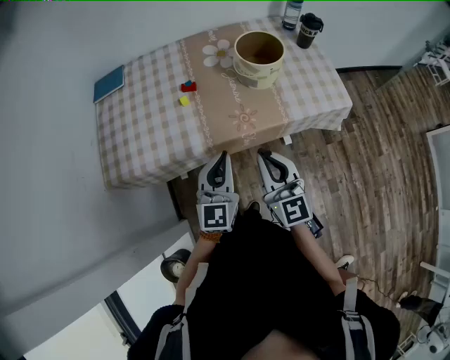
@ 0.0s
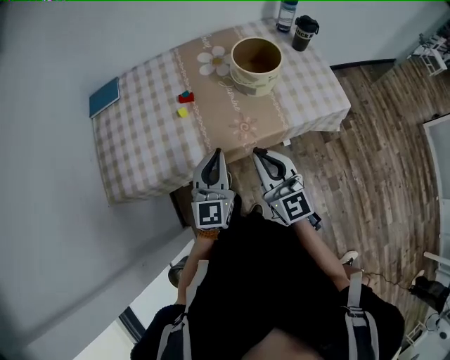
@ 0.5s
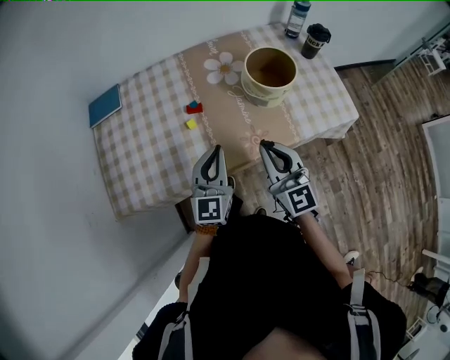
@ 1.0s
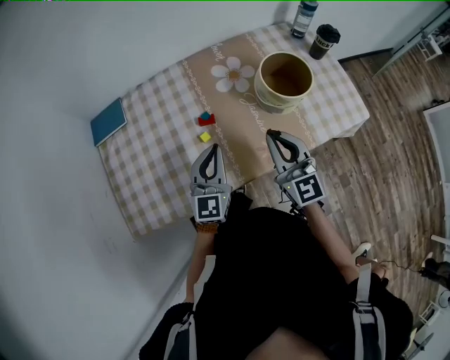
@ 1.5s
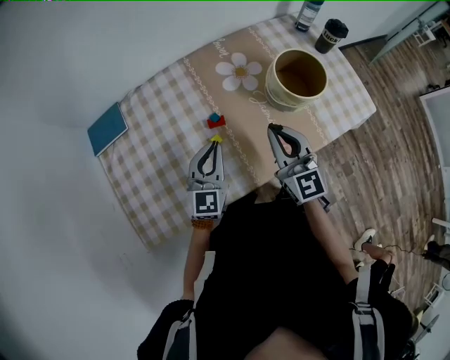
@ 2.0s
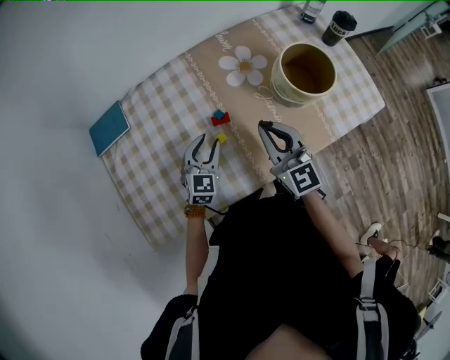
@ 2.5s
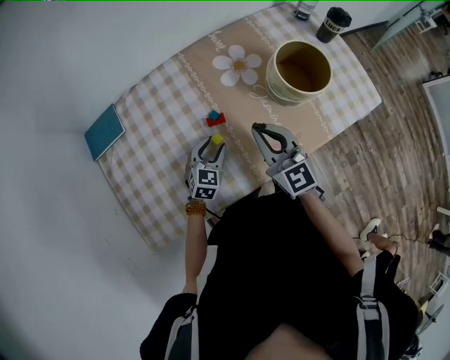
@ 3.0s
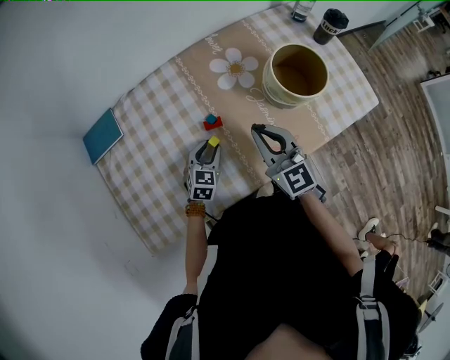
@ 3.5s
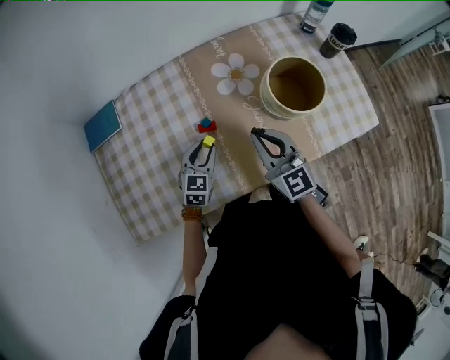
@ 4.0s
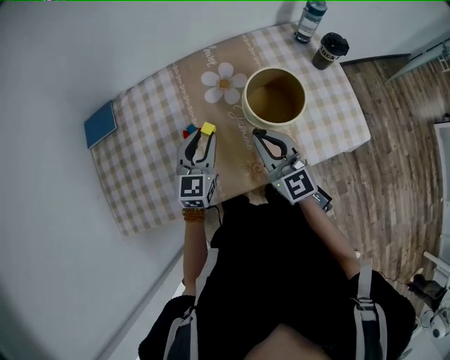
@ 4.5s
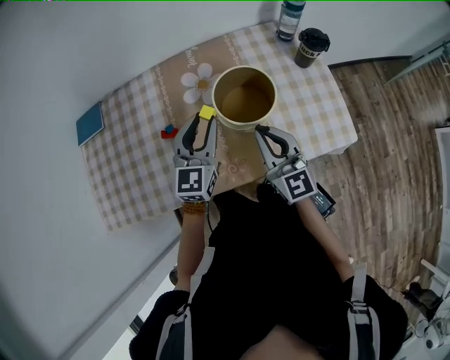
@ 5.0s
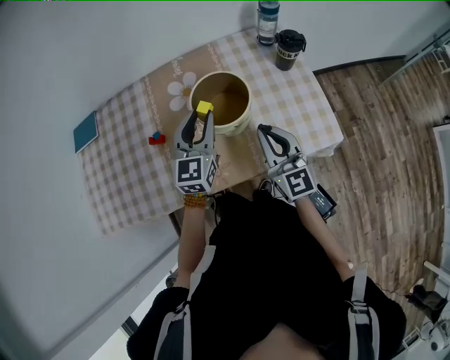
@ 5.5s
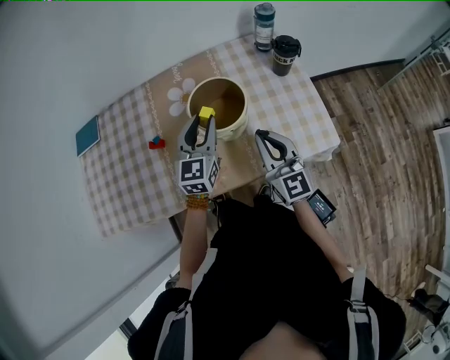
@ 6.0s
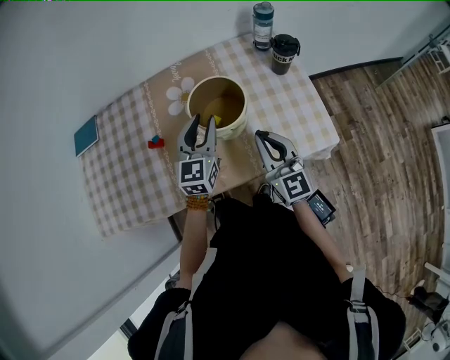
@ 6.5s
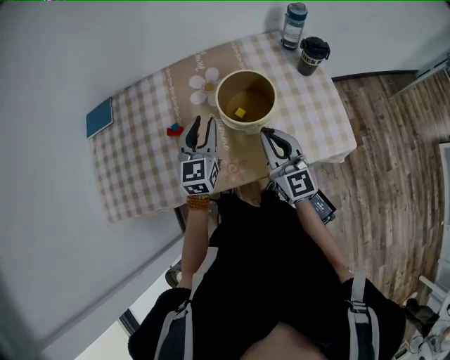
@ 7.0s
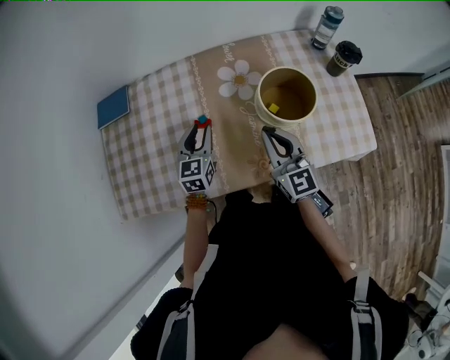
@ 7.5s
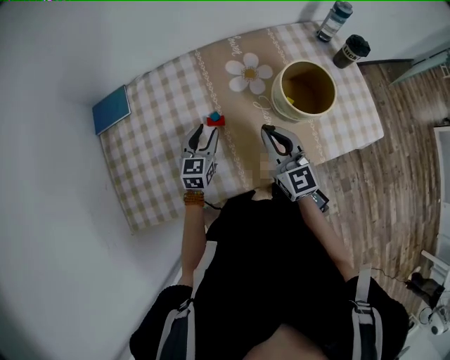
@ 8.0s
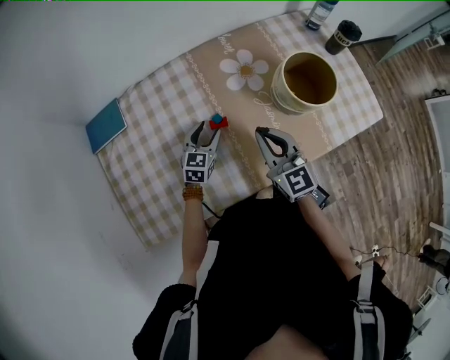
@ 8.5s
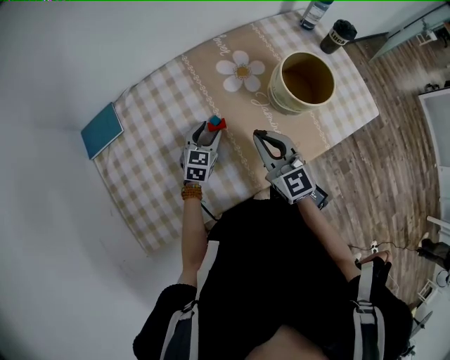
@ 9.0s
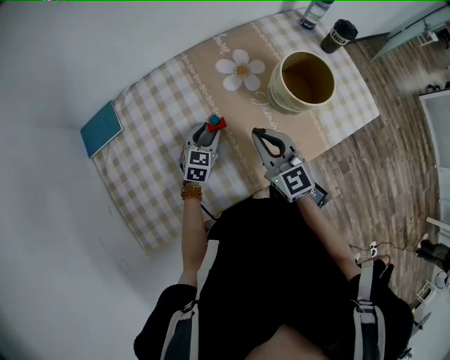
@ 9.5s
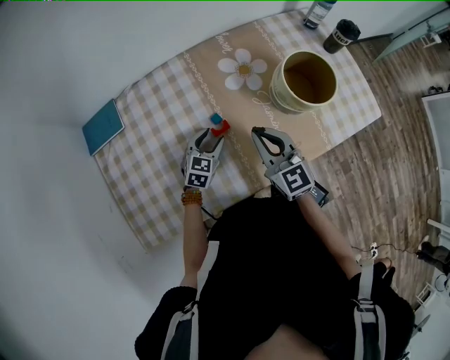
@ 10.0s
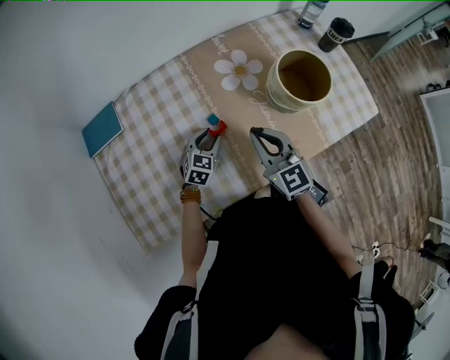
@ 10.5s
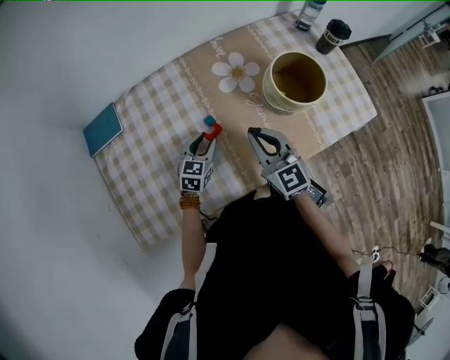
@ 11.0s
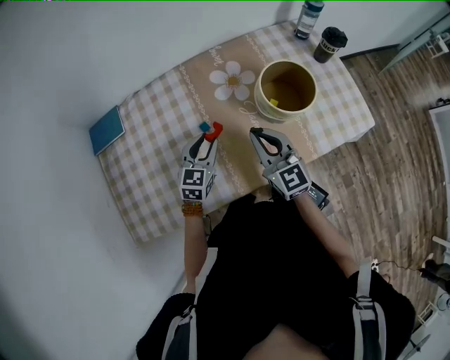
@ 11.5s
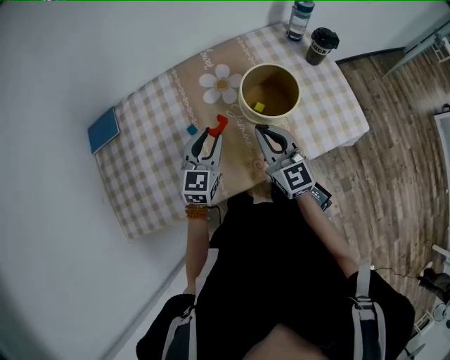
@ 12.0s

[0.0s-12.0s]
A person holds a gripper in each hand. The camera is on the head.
0.0s to 2.0s: Both grippers move forward and to the left, approximately 30 cm.
2.0s to 4.0s: The left gripper shifts about 10 cm downward, changes its angle by roughly 20 degrees, and opens up.
4.0s to 6.0s: The right gripper heads to the right, covering some 25 cm, while the left gripper heads to the right and upward, covering approximately 30 cm, and turns by about 20 degrees.
6.0s to 8.0s: The left gripper is displaced to the left and downward by about 35 cm, while the right gripper is displaced to the left by roughly 25 cm.
8.0s to 10.0s: The left gripper moves downward, about 5 cm, and changes its angle by roughly 20 degrees. Meanwhile the right gripper heads to the left, covering approximately 5 cm.
10.0s to 12.0s: The right gripper goes roughly 15 cm to the right. Meanwhile the left gripper shifts some 20 cm upward and to the right, and closes up.

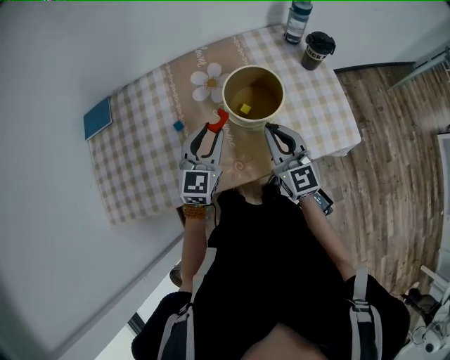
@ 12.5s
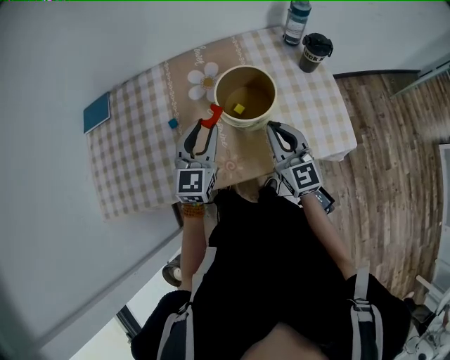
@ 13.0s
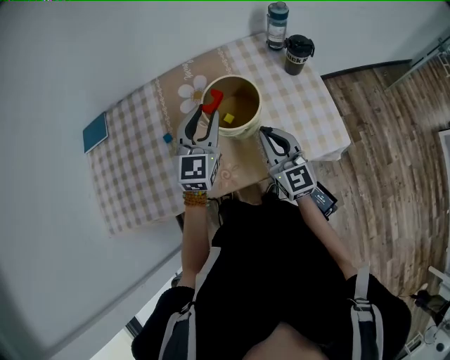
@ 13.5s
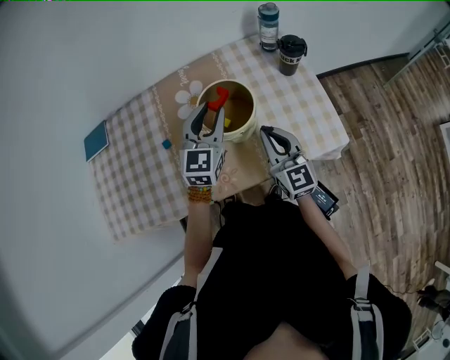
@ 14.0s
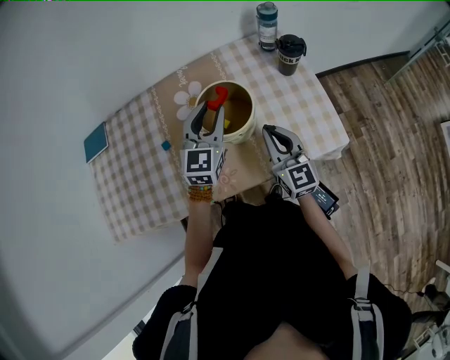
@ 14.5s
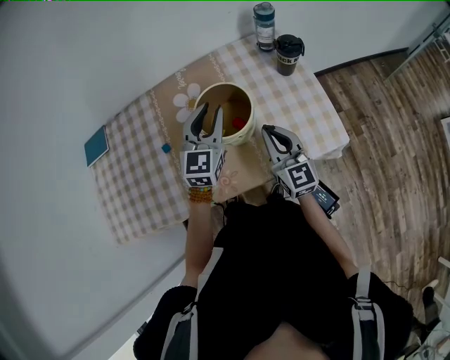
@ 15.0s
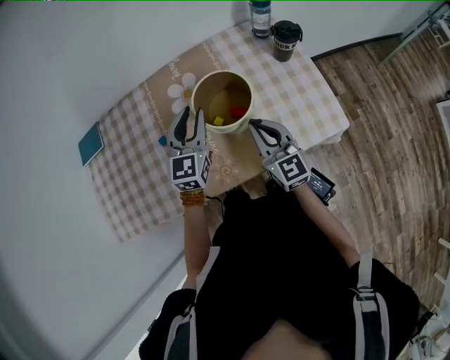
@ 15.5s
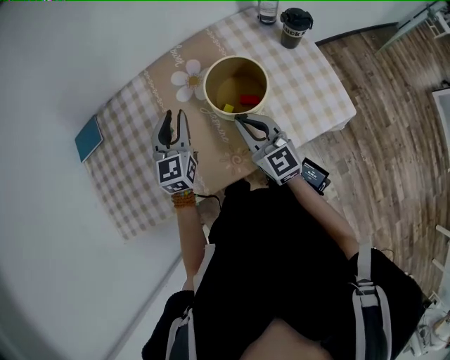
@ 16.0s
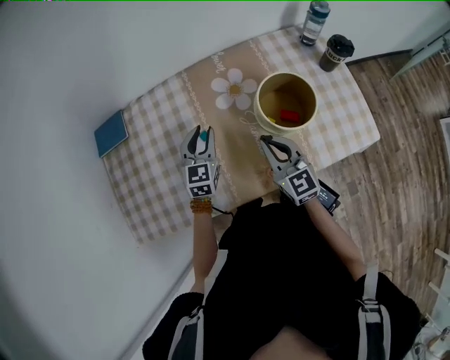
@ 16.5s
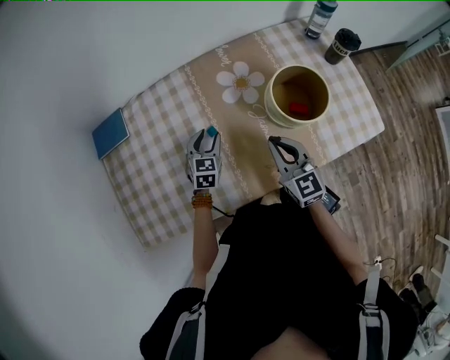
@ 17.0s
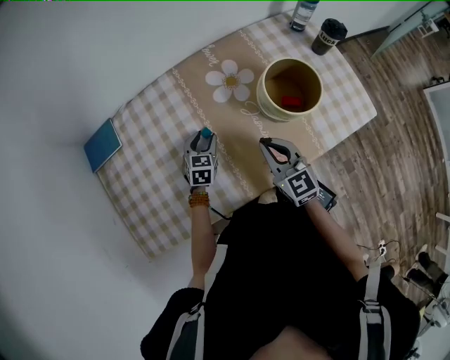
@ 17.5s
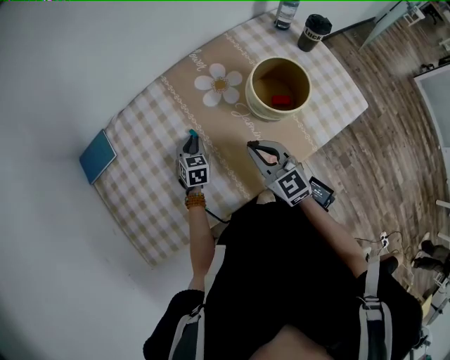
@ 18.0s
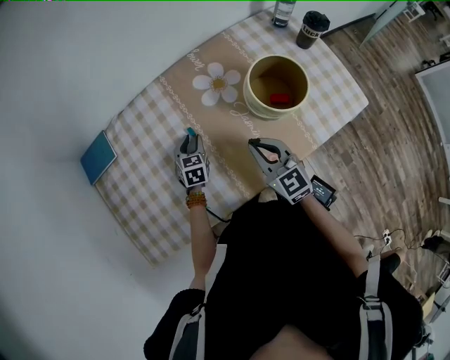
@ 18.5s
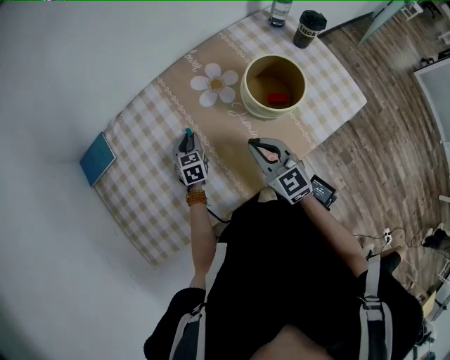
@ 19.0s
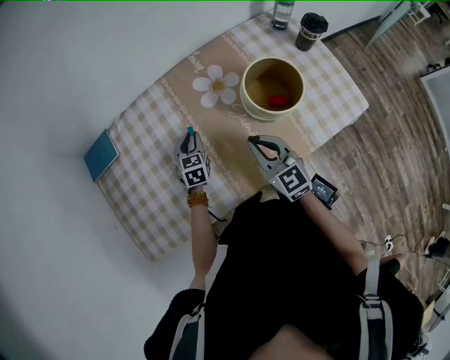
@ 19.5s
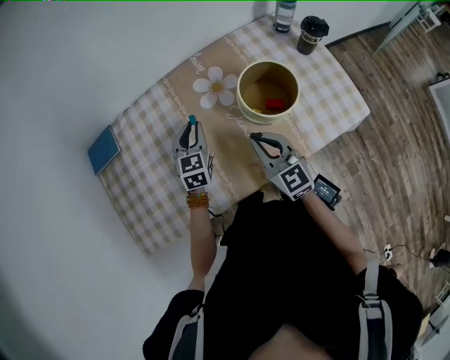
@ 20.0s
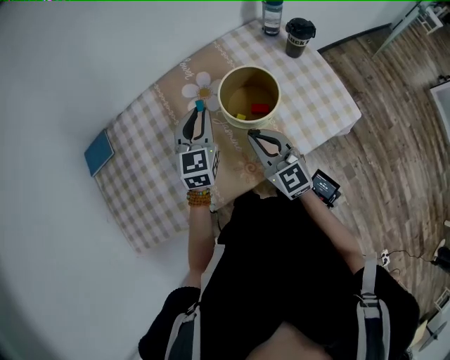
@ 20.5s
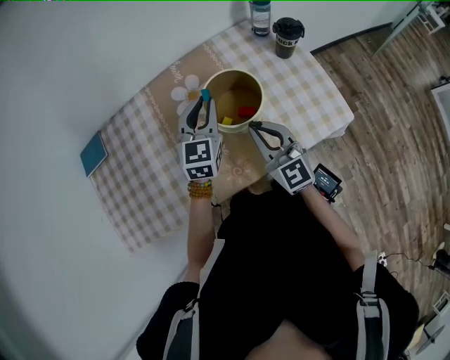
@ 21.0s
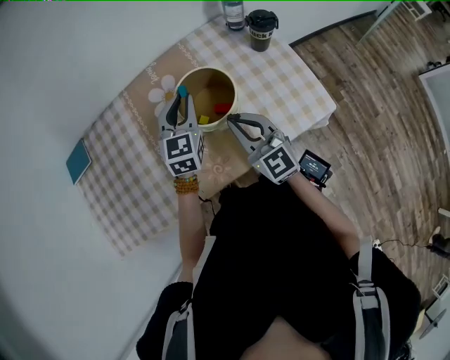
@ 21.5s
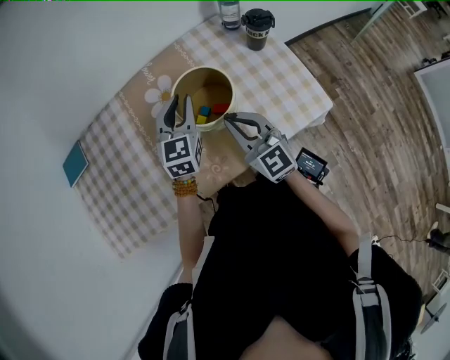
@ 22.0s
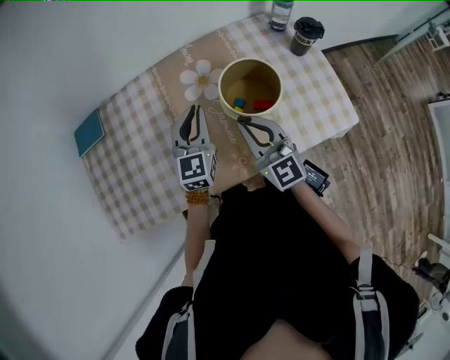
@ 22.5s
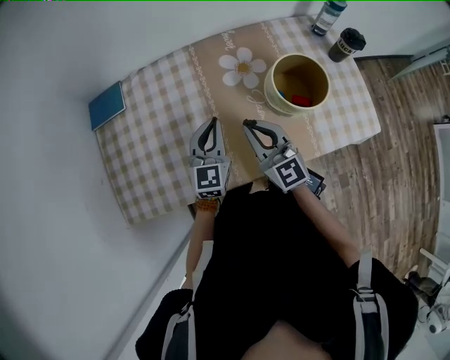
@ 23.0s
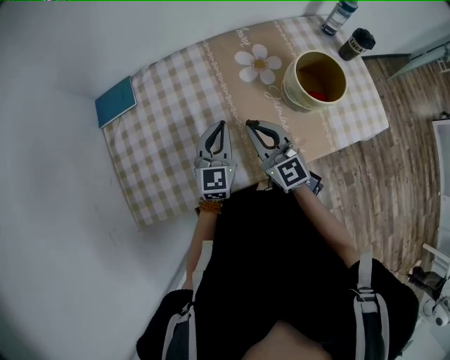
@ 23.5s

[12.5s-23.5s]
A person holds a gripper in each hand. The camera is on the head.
12.5s to 14.5s: The right gripper heads to the right, covering approximately 10 cm; the left gripper is displaced to the right and forward by about 15 cm.
14.5s to 16.0s: Both grippers travel together to the left, some 15 cm.
16.0s to 18.0s: The left gripper goes about 25 cm downward and to the left, and swivels approximately 30 degrees, while the right gripper moves to the left, roughly 15 cm.
18.0s to 20.0s: The left gripper heads upward and to the right, covering approximately 15 cm. The right gripper travels to the right by approximately 5 cm.
20.0s to 21.5s: Both grippers travel together to the right, about 15 cm.
21.5s to 23.5s: Both grippers travel together to the left, some 30 cm.

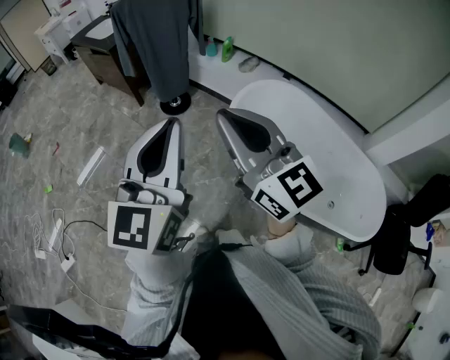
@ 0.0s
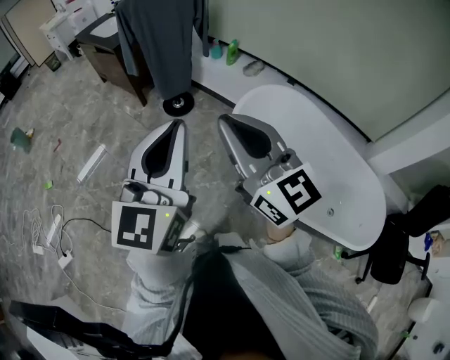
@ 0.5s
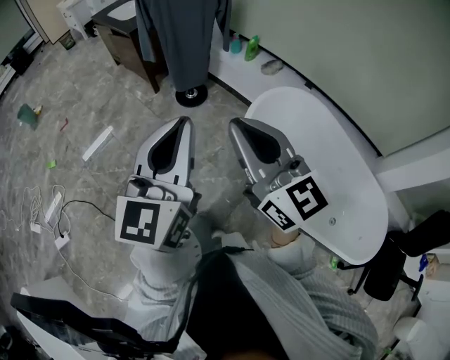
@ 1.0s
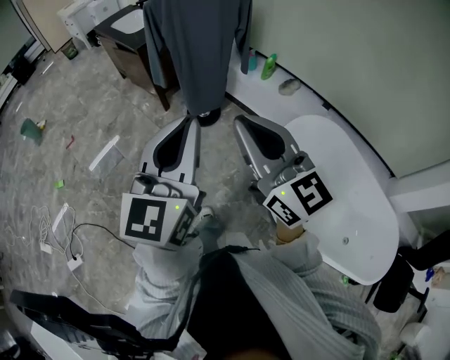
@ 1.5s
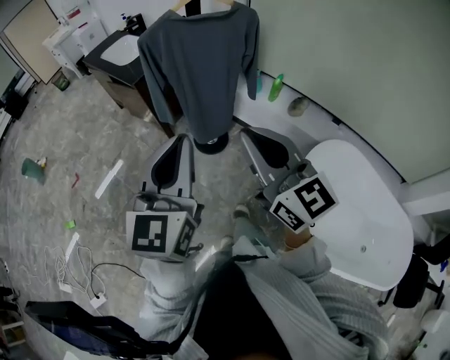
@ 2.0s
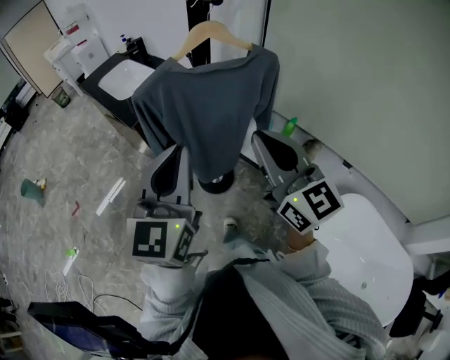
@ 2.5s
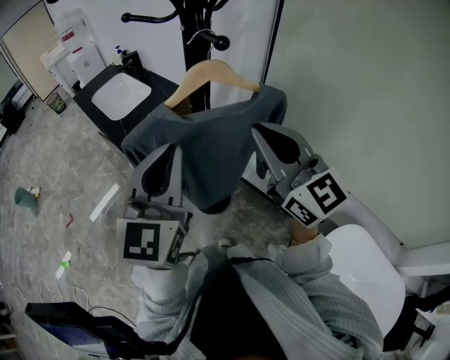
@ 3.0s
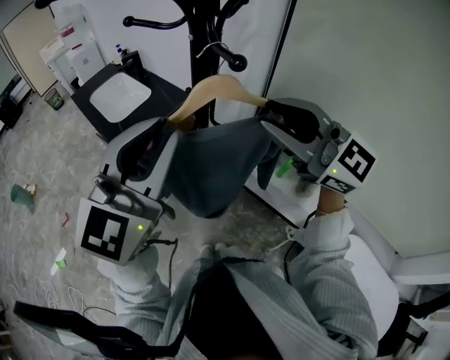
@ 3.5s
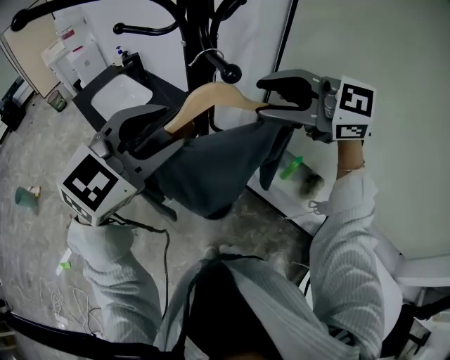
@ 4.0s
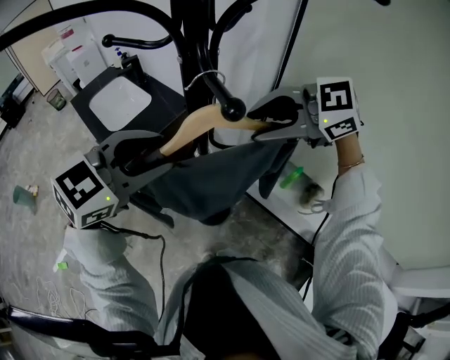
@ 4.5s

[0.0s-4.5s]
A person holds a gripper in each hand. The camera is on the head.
0.0s to 2.0s: Both grippers are carried forward, about 40 cm.
2.0s to 4.5s: Both grippers are carried about 50 cm. The right gripper tips its fingers downward by some 40 degrees, and opens up. The left gripper rotates some 50 degrees, and opens its fingers.
